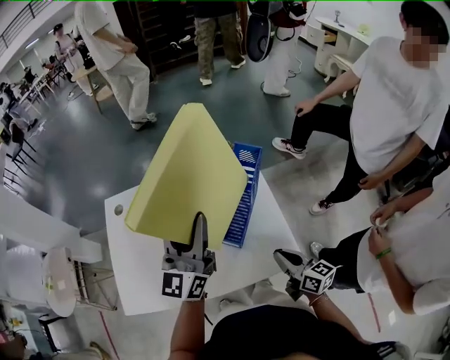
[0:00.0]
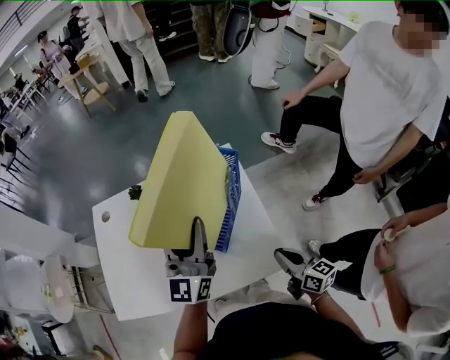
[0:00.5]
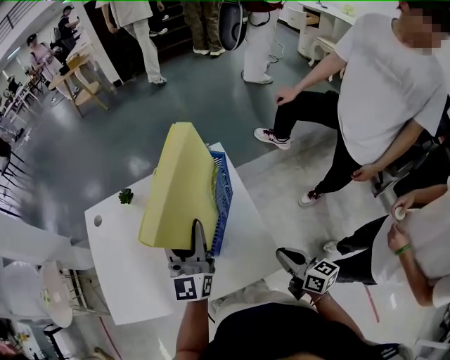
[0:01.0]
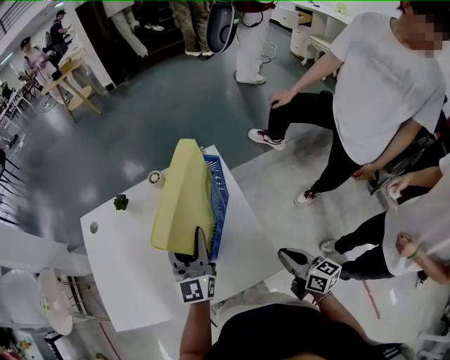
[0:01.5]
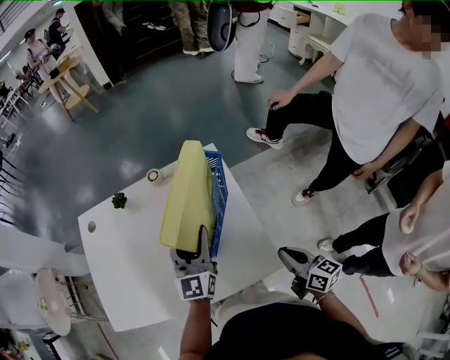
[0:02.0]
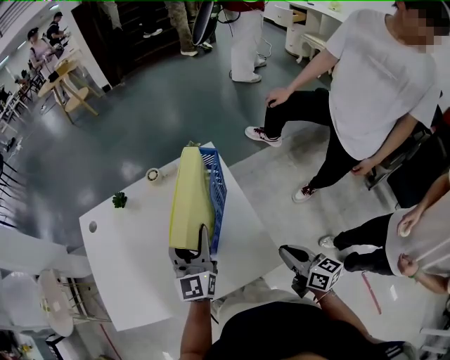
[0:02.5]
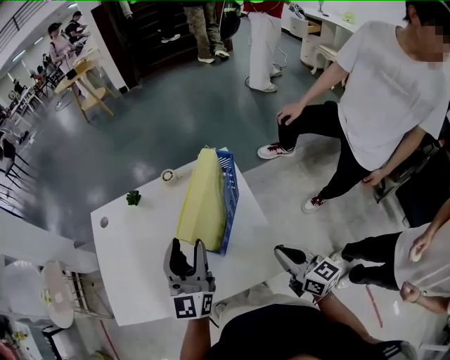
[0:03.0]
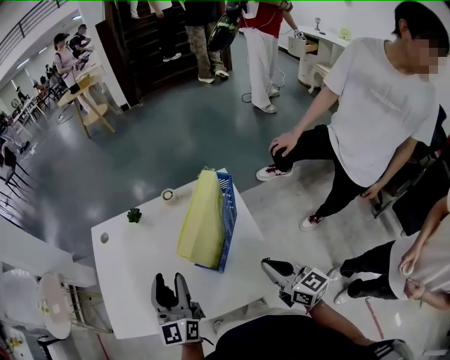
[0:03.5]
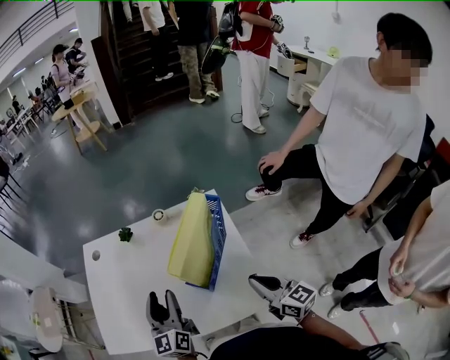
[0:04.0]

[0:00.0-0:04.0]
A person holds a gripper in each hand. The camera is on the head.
0:00.0 to 0:02.0: The right gripper moves to the right, roughly 10 cm, while the left gripper shifts roughly 20 cm downward and to the right.
0:02.0 to 0:04.0: The left gripper is displaced to the left and backward by approximately 15 cm, and changes its angle by about 20 degrees. The right gripper moves upward and to the left, some 10 cm, and rotates approximately 20 degrees.

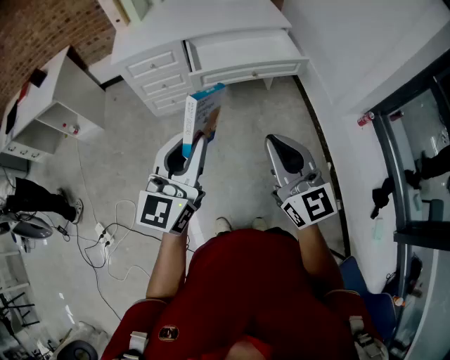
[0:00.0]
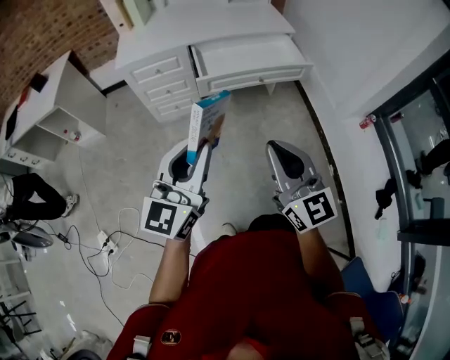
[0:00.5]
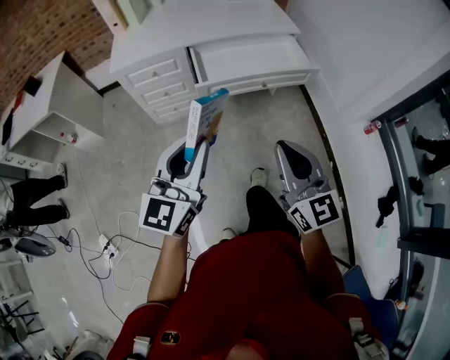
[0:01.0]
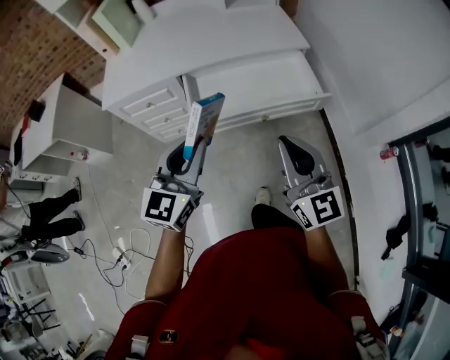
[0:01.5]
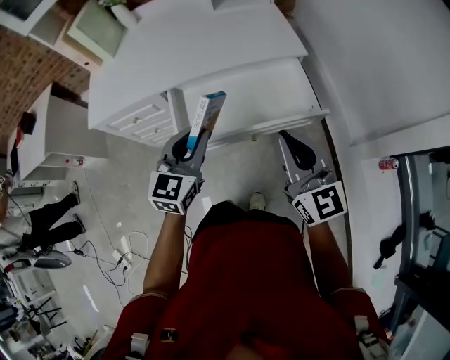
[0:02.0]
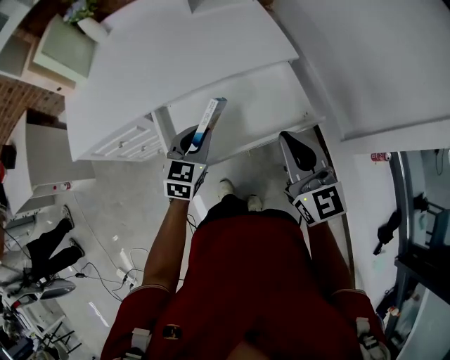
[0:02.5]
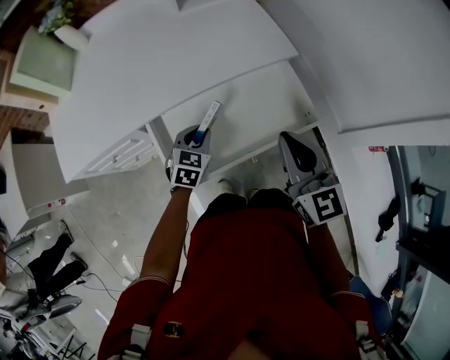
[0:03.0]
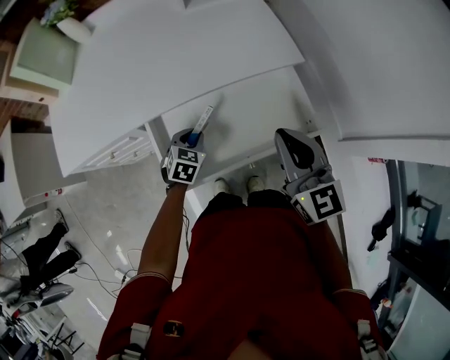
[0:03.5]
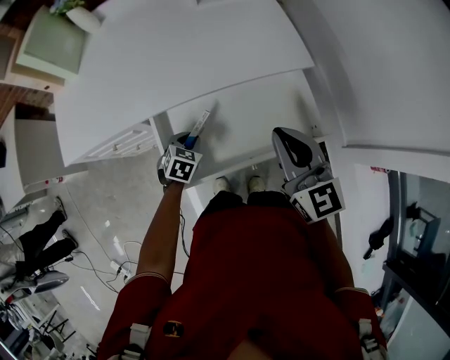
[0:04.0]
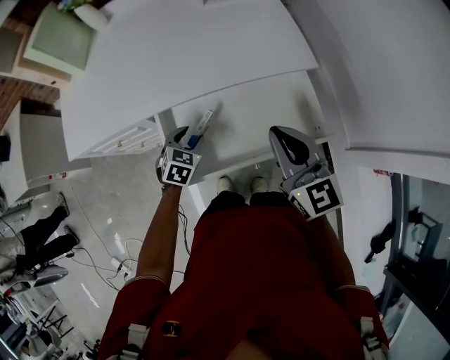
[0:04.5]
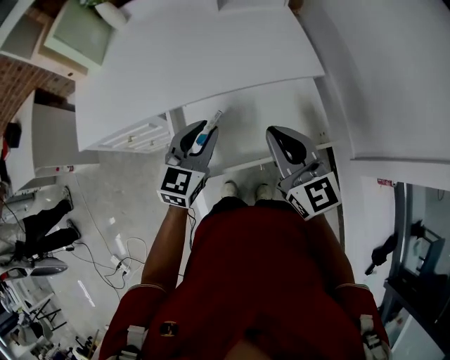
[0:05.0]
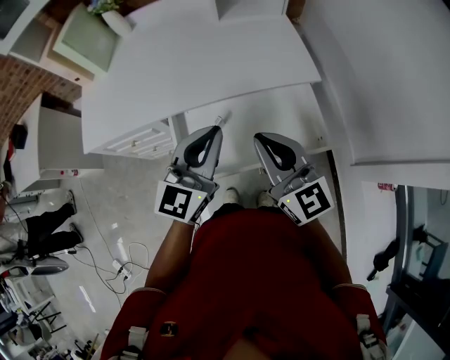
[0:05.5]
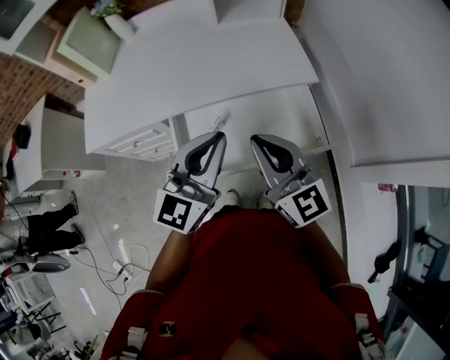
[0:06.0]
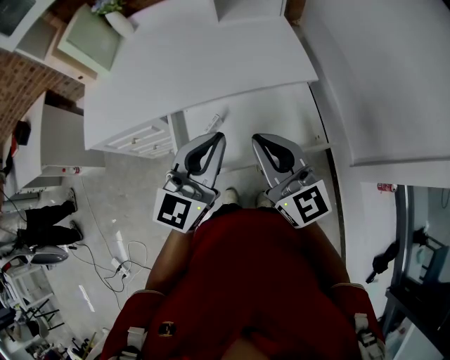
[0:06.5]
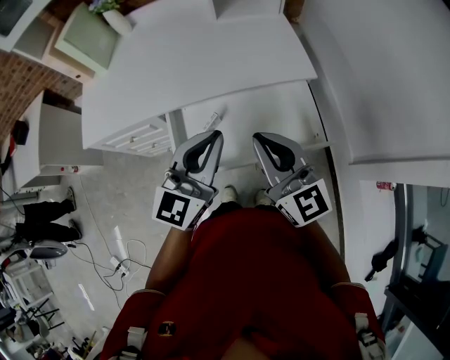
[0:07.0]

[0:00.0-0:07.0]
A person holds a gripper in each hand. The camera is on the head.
0:00.0 to 0:02.0: The pair of grippers is taken forward, approximately 50 cm. The left gripper swivels some 20 degrees.
0:02.0 to 0:03.5: The right gripper is displaced forward by some 15 cm; the left gripper moves downward and forward, about 30 cm, and tips its fingers downward by roughly 30 degrees.
0:03.5 to 0:05.0: The left gripper goes some 20 cm upward, angles its fingers upward, by approximately 30 degrees, and opens, then closes again.
0:05.0 to 0:07.0: The left gripper heads upward, backward and to the right, covering roughly 15 cm, and closes. The right gripper shifts by roughly 5 cm.

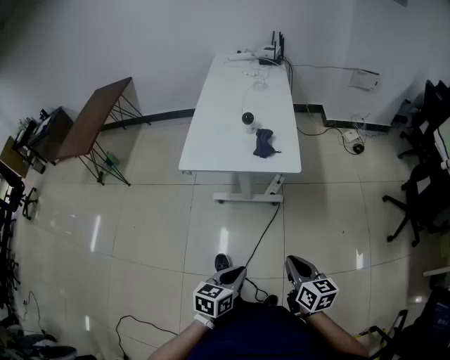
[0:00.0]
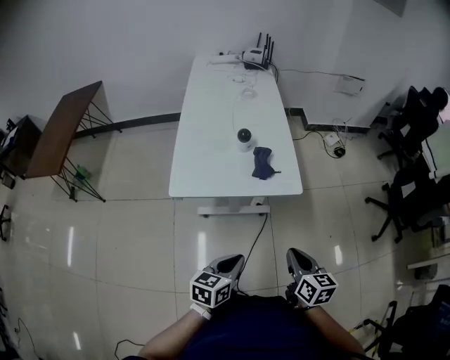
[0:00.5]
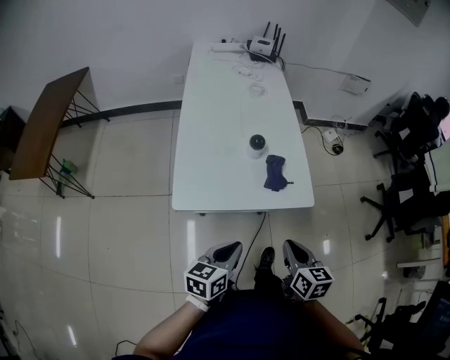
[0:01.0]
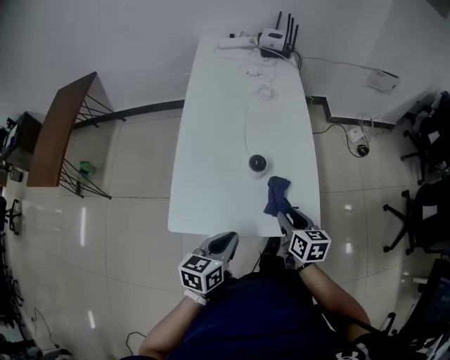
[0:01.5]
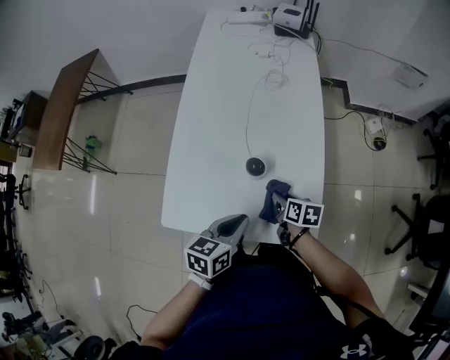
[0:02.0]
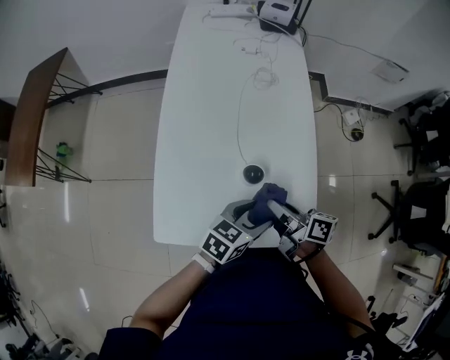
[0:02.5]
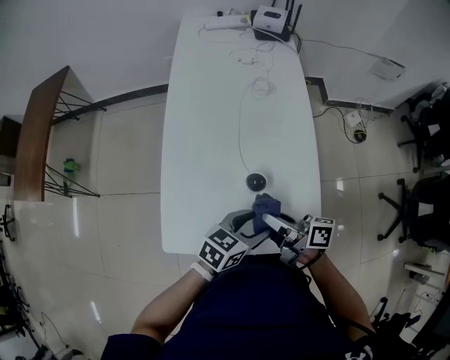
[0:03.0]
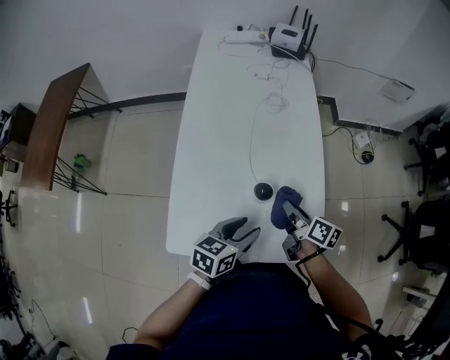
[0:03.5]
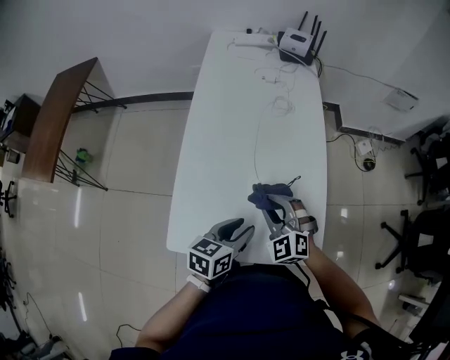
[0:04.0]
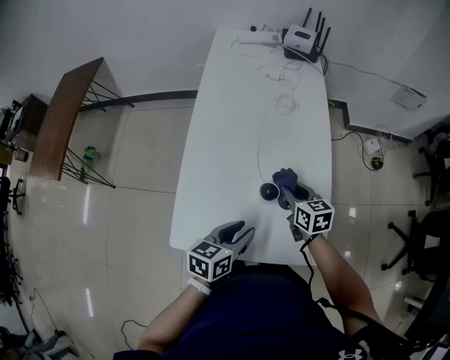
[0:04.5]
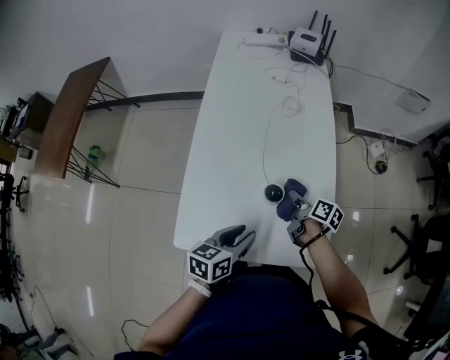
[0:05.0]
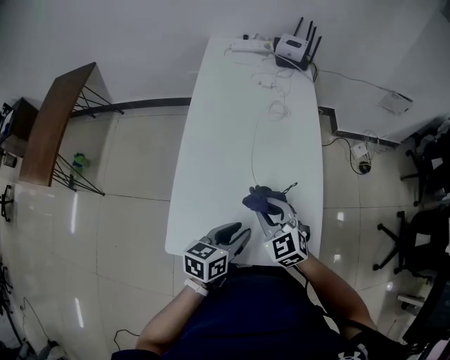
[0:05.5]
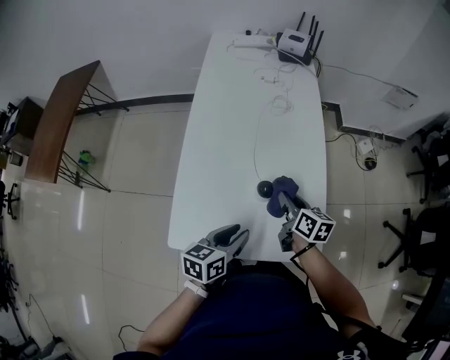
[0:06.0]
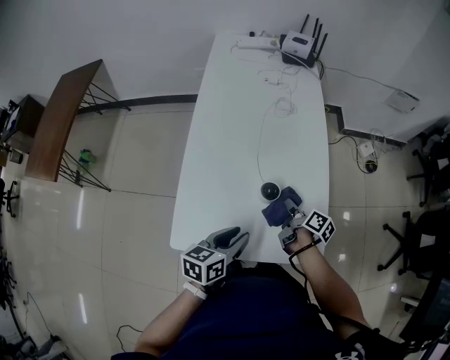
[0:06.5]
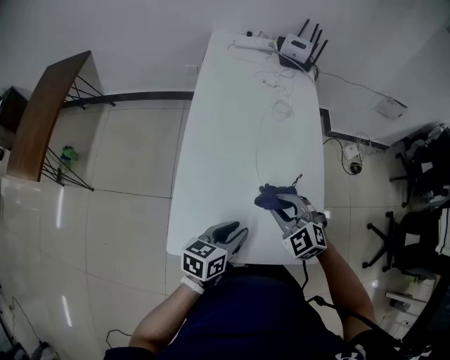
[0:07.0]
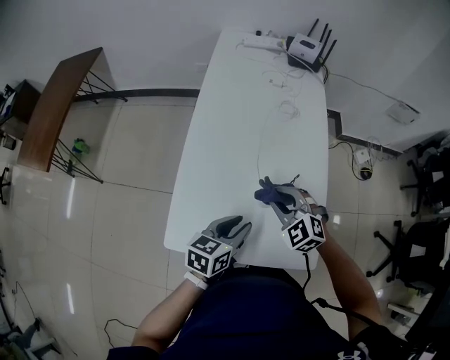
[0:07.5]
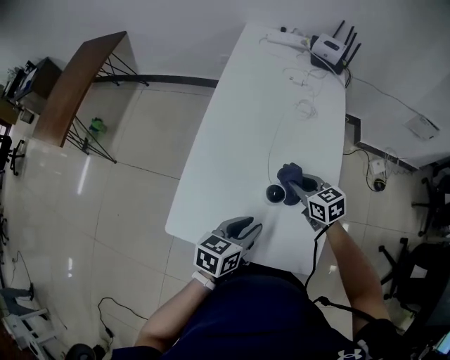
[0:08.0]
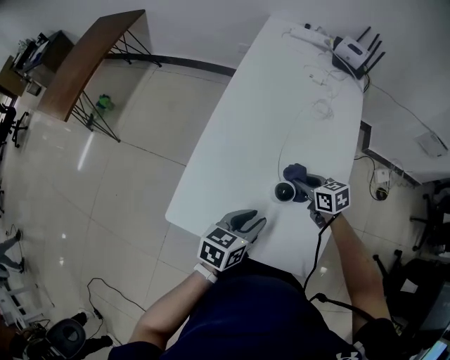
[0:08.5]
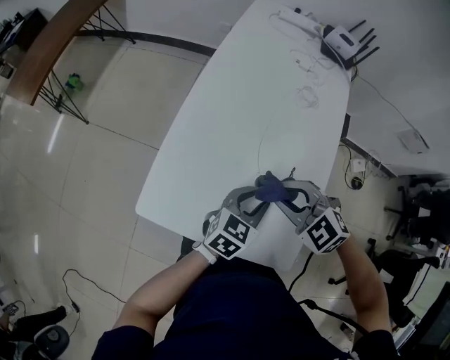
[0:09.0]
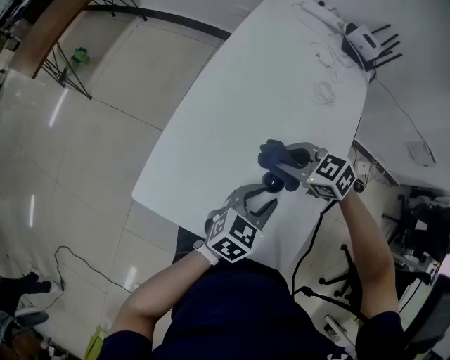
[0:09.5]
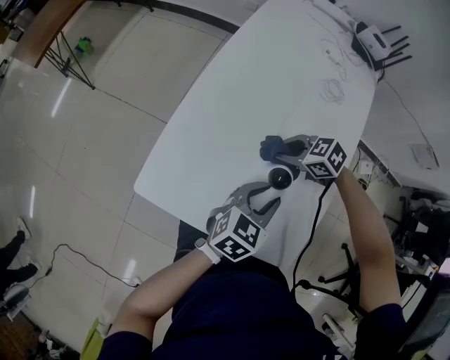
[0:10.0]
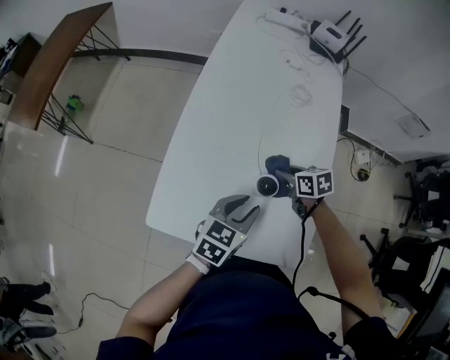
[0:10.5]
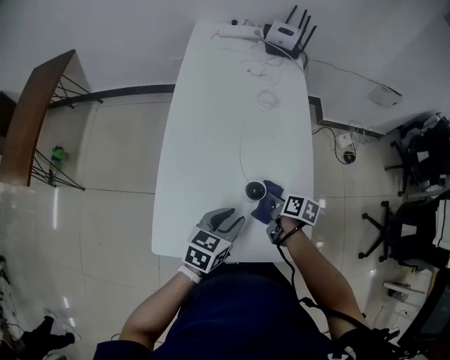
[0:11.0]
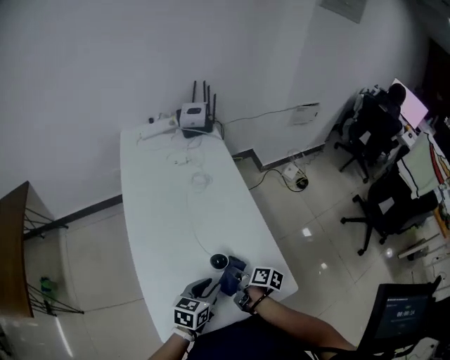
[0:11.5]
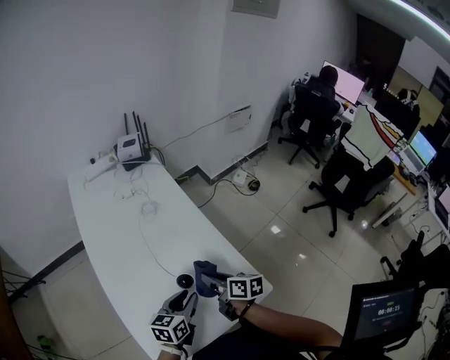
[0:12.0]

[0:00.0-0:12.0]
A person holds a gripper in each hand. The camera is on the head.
0:00.0 to 0:02.0: The two grippers travel together, forward, approximately 50 cm. The right gripper changes its angle by about 30 degrees, and opens its fingers.
0:02.0 to 0:04.0: The right gripper swings up and down, some 15 cm each way, with 2 reversals, and rolls counterclockwise, seen from behind, by approximately 90 degrees, while the left gripper moves approximately 5 cm, and opens up.
0:04.0 to 0:06.0: The right gripper moves up and down over approximately 15 cm, changing direction 2 times, and twists some 80 degrees clockwise, seen from behind.
0:06.0 to 0:08.0: The right gripper goes up and down, approximately 15 cm each way, reversing 2 times, and rotates approximately 50 degrees.
0:08.0 to 0:10.0: The right gripper swings up and down, roughly 15 cm each way, with 2 reversals, and turns by some 50 degrees; the left gripper moves some 5 cm.
0:10.0 to 0:12.0: The right gripper shifts by approximately 15 cm, and rotates some 110 degrees; the left gripper changes its angle by roughly 30 degrees.

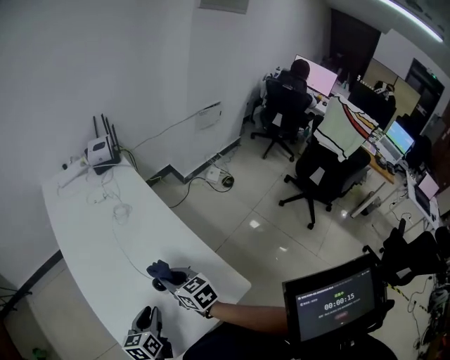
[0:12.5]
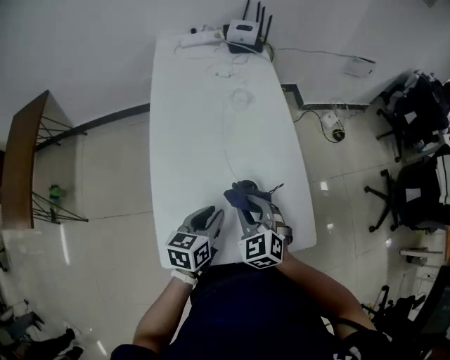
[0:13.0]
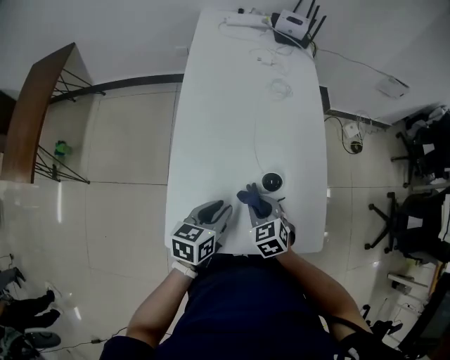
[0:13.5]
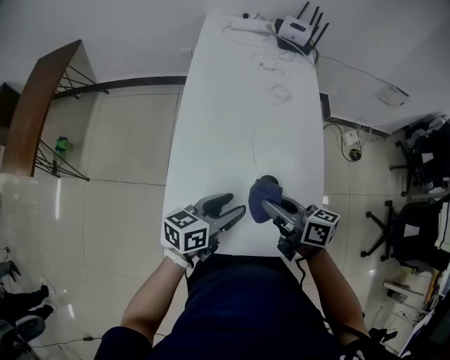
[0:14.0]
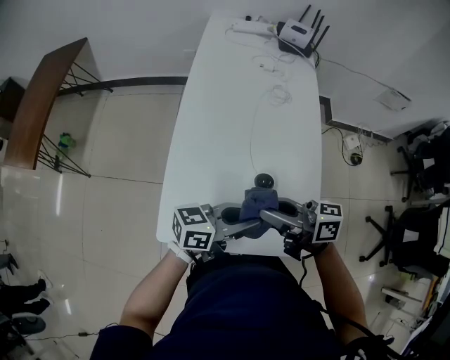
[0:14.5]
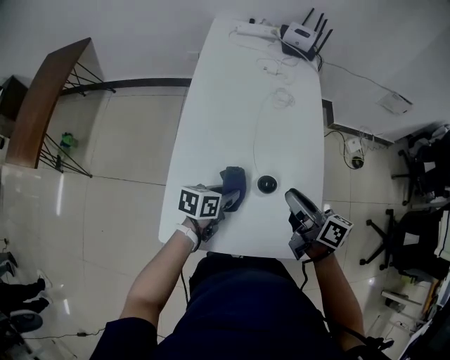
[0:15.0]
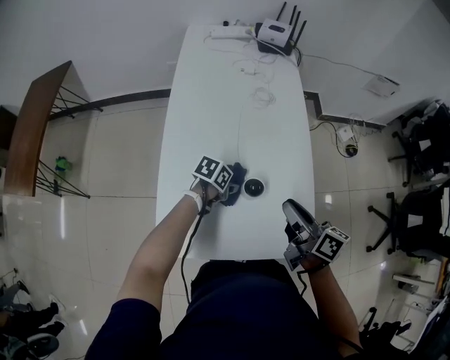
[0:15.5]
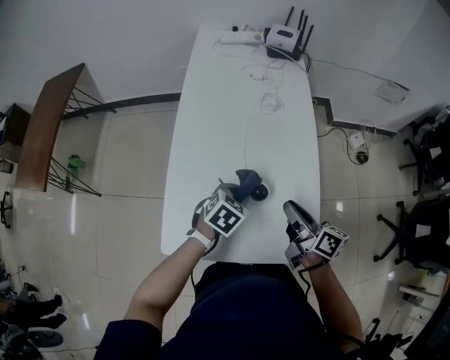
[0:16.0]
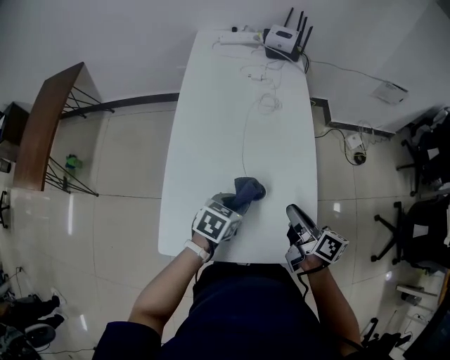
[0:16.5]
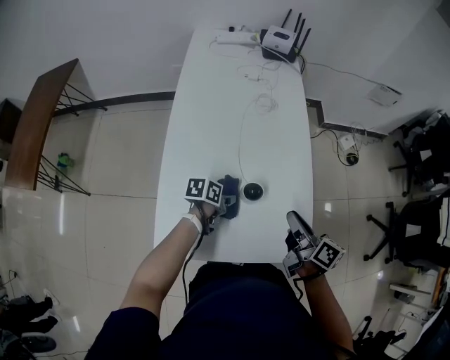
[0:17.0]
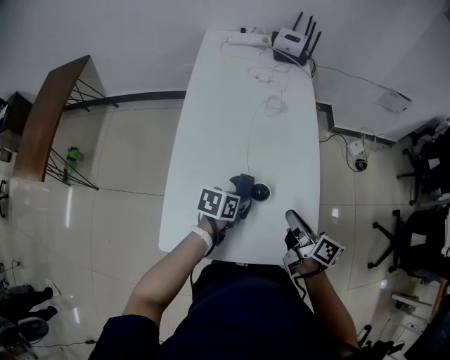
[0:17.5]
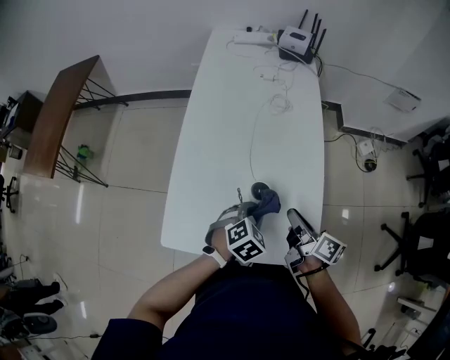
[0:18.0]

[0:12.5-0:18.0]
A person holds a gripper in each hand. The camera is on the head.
0:12.5 to 0:14.5: Both grippers travel together upward, about 10 cm. The left gripper swivels about 40 degrees, while the right gripper swivels about 60 degrees.
0:14.5 to 0:16.0: The left gripper travels downward by approximately 15 cm, and points its fingers approximately 50 degrees further downward, while the right gripper ends up about 15 cm from where it was, and turns by some 40 degrees.
0:16.0 to 0:18.0: The left gripper heads to the right, covering roughly 5 cm, and goes downward and returns, some 10 cm each way.
